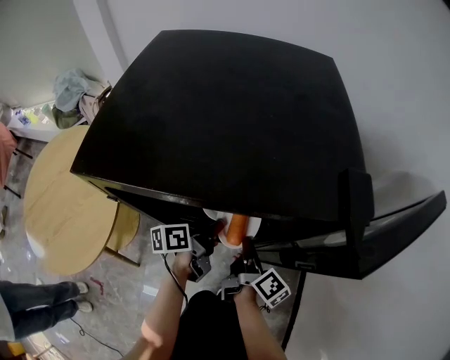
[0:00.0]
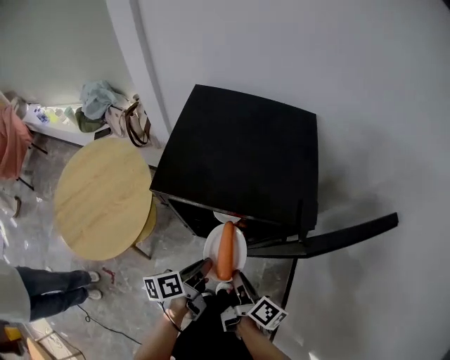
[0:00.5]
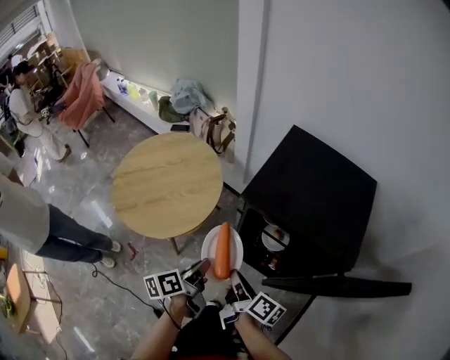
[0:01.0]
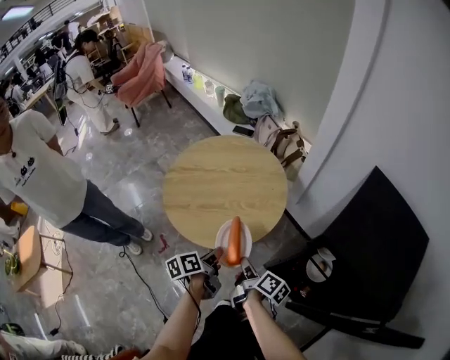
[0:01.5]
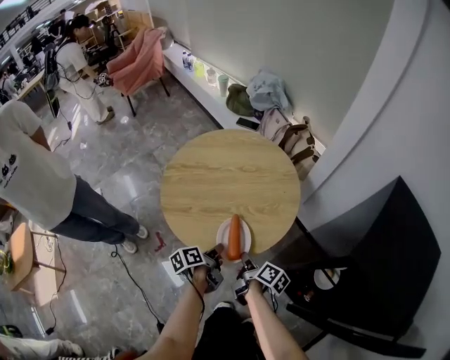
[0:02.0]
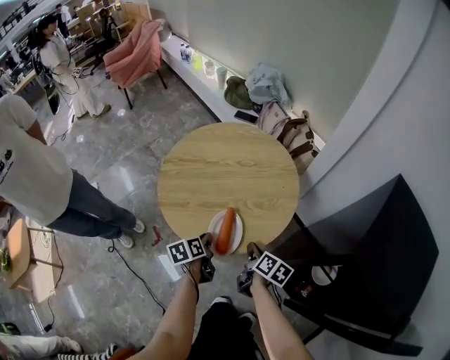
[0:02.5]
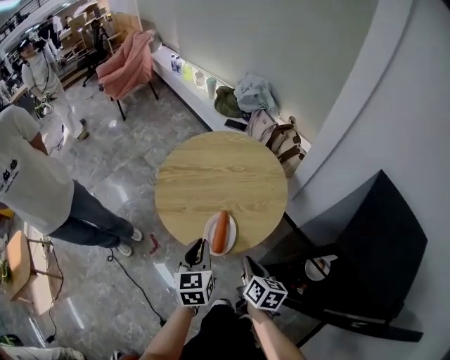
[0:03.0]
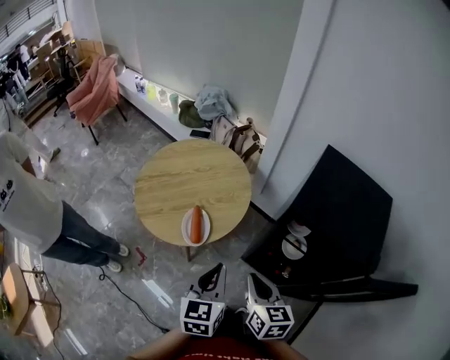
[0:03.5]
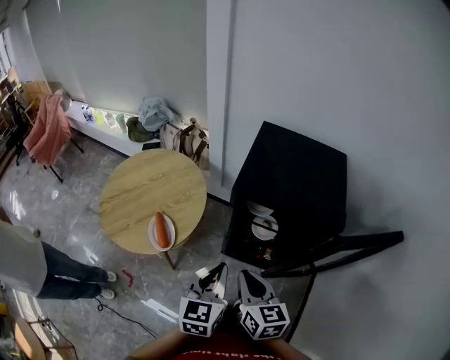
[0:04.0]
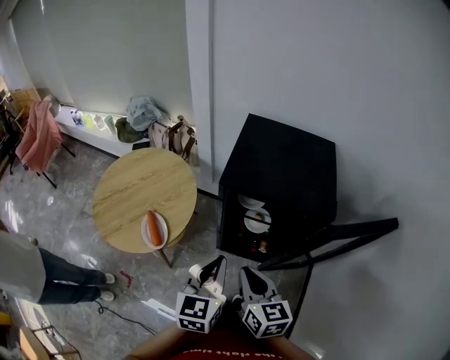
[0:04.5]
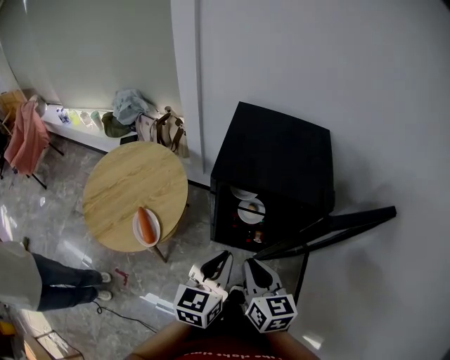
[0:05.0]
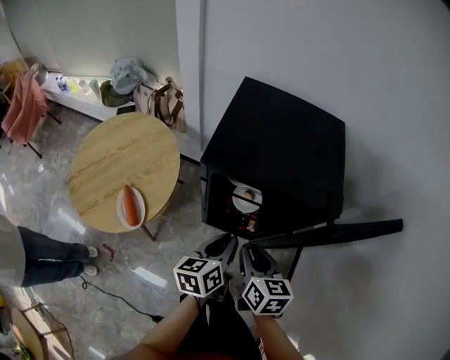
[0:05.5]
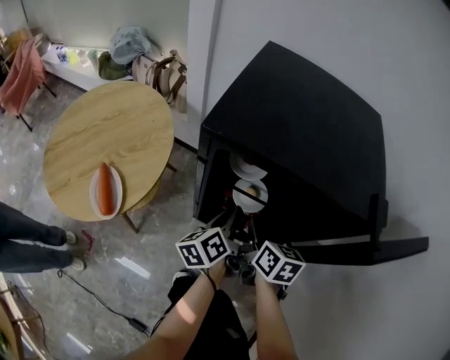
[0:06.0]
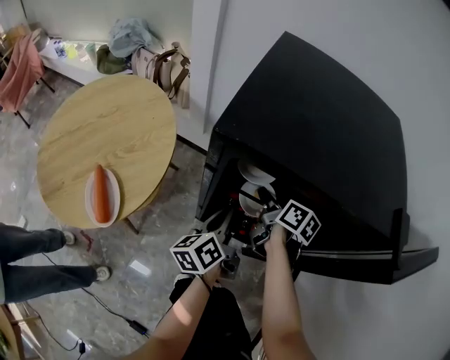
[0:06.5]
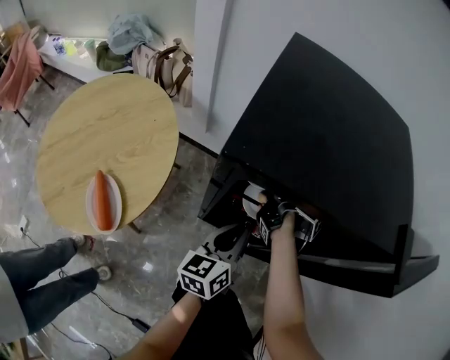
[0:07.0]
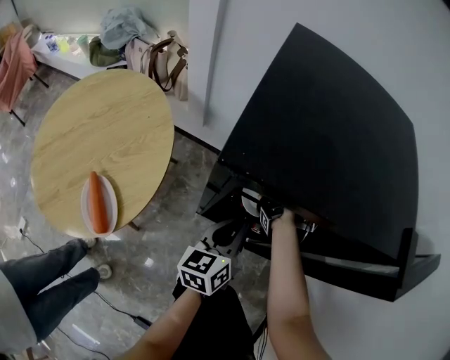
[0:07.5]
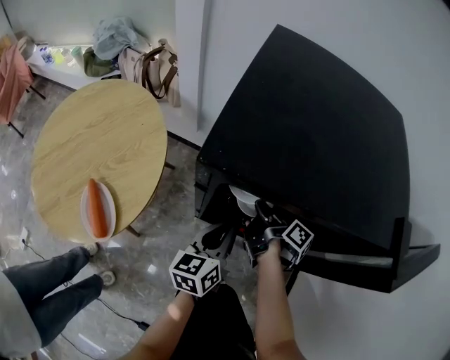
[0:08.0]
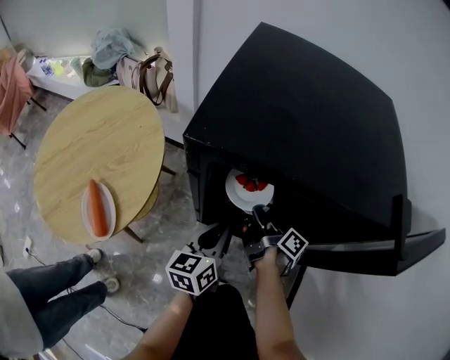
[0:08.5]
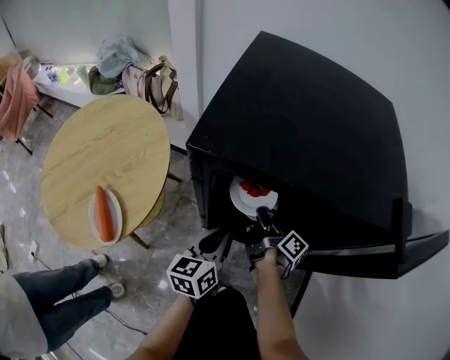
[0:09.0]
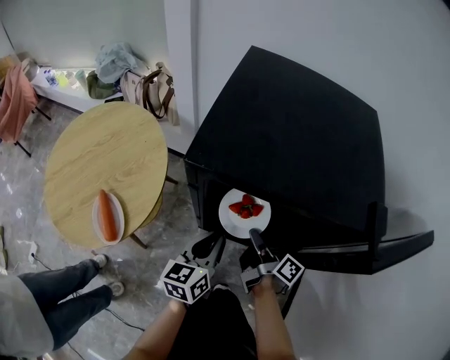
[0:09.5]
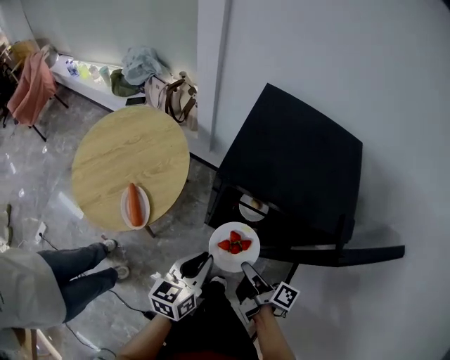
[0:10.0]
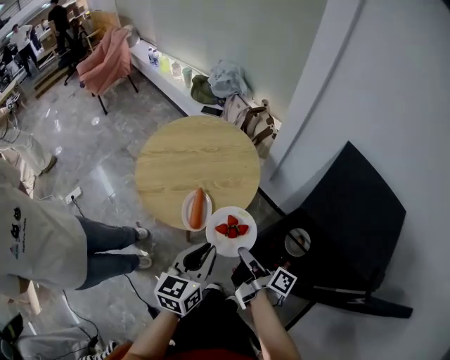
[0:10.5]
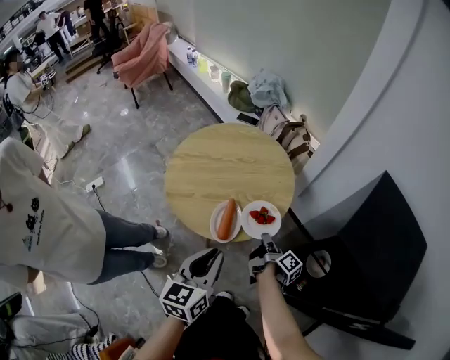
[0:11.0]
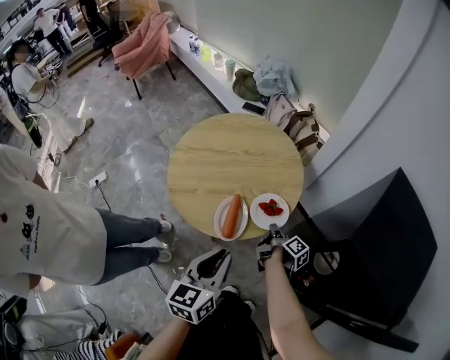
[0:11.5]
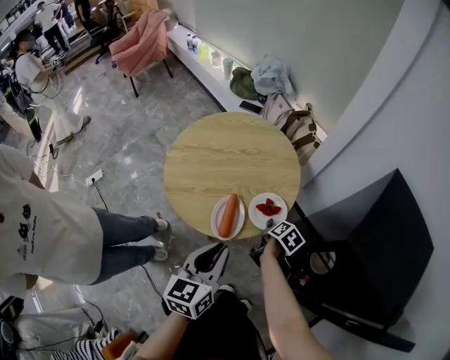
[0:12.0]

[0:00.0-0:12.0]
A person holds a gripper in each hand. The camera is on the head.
0:00.0 to 0:02.0: The pair of grippers is taken about 50 cm. The left gripper changes its angle by roughly 60 degrees. The right gripper rotates roughly 60 degrees.
0:02.0 to 0:04.0: The left gripper is displaced upward by about 30 cm, and twists approximately 80 degrees clockwise, seen from behind. The right gripper moves roughly 40 cm, and swivels approximately 60 degrees.
0:04.0 to 0:06.0: Both grippers travel together downward, forward and to the right, about 30 cm. The left gripper twists approximately 50 degrees counterclockwise, seen from behind.
0:06.0 to 0:08.0: The left gripper changes its angle by roughly 30 degrees; the right gripper moves forward and downward, some 10 cm, and twists approximately 60 degrees clockwise, seen from behind.
0:08.0 to 0:10.0: The left gripper is displaced upward and backward by roughly 20 cm; the right gripper heads backward and upward, covering roughly 25 cm.
0:10.0 to 0:12.0: The right gripper moves forward, to the left and downward, about 35 cm, points its fingers some 40 degrees further downward, and opens. Meanwhile the left gripper goes about 25 cm to the left, and swivels about 30 degrees.

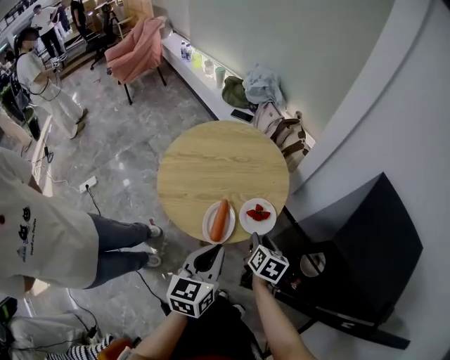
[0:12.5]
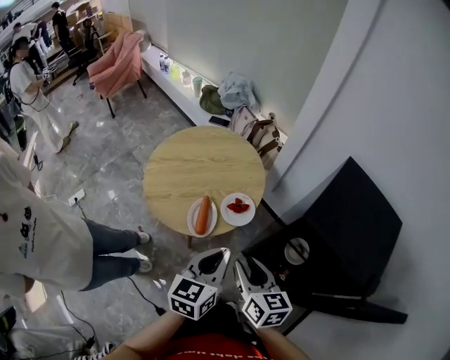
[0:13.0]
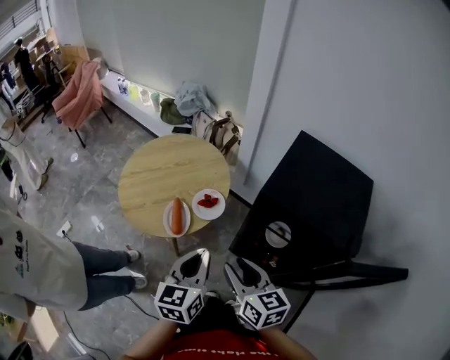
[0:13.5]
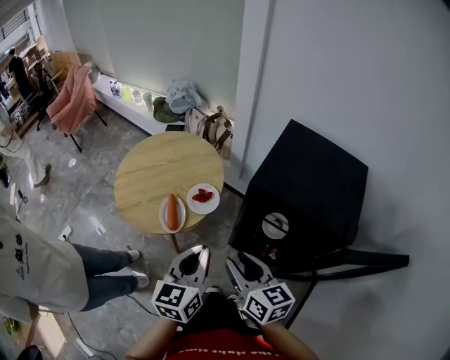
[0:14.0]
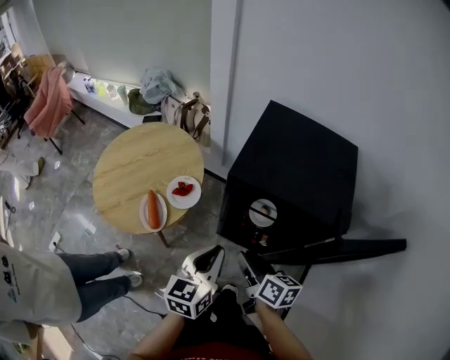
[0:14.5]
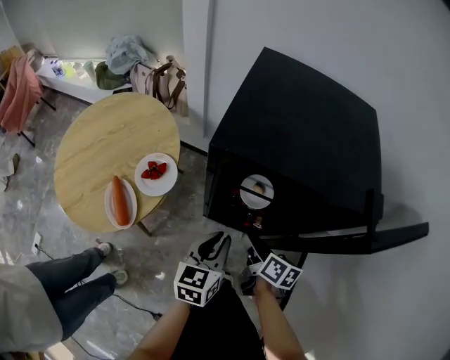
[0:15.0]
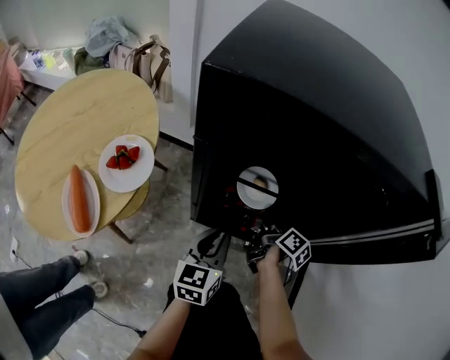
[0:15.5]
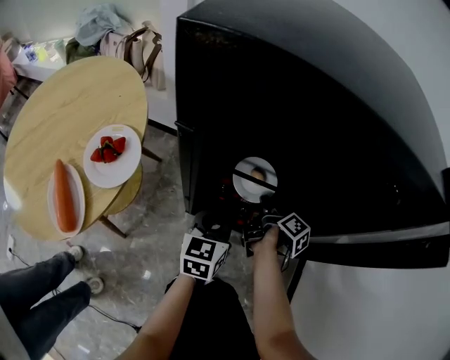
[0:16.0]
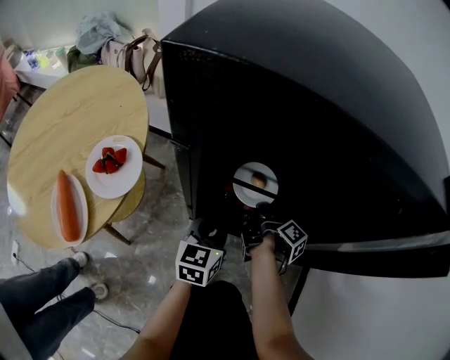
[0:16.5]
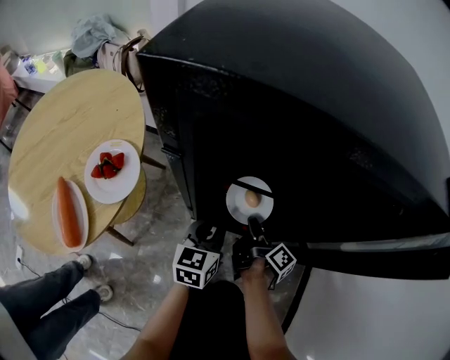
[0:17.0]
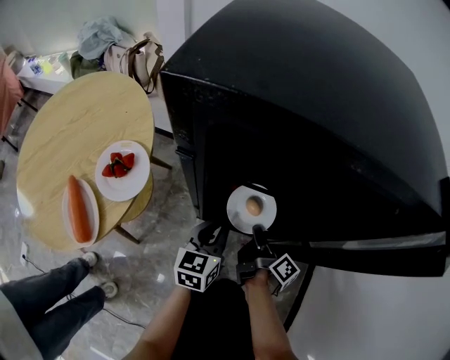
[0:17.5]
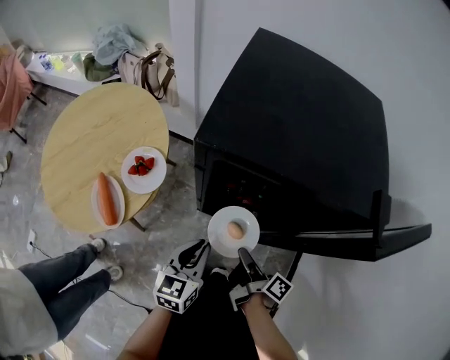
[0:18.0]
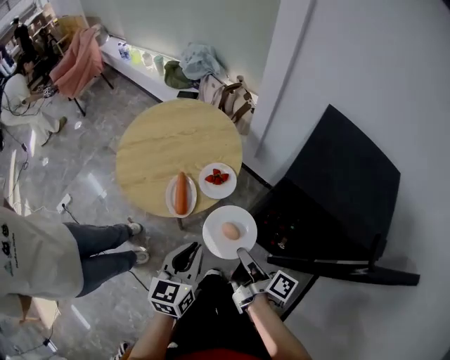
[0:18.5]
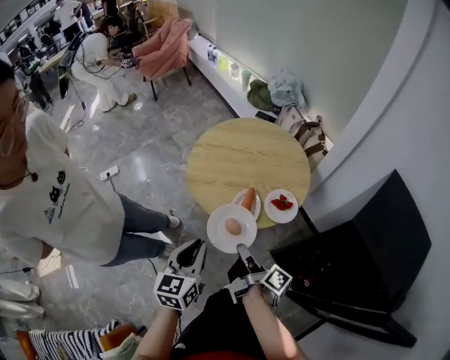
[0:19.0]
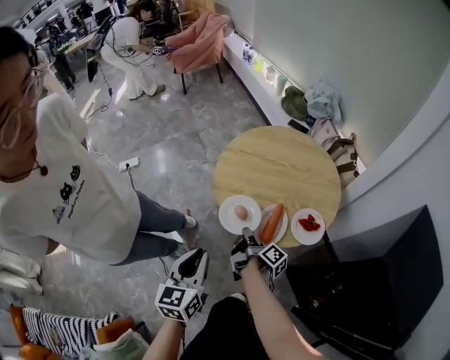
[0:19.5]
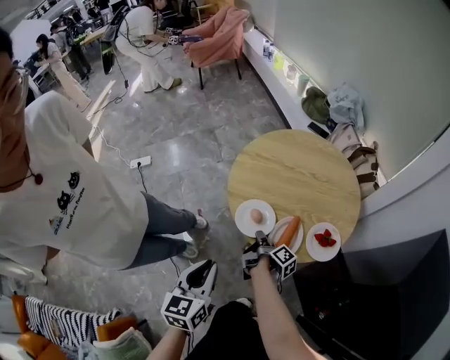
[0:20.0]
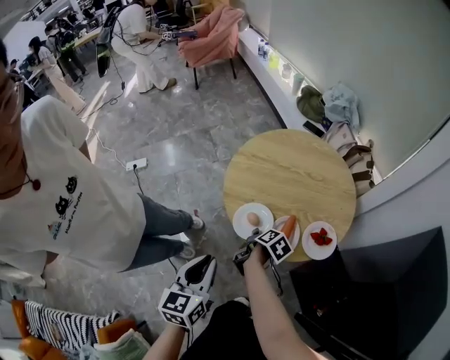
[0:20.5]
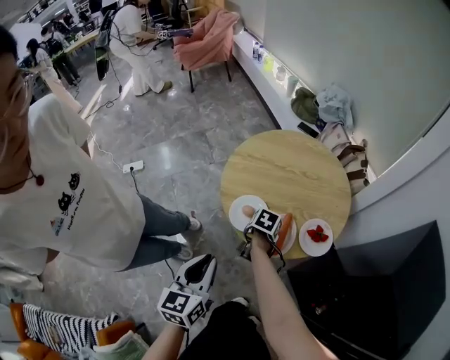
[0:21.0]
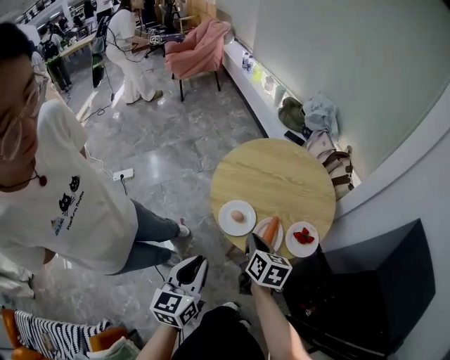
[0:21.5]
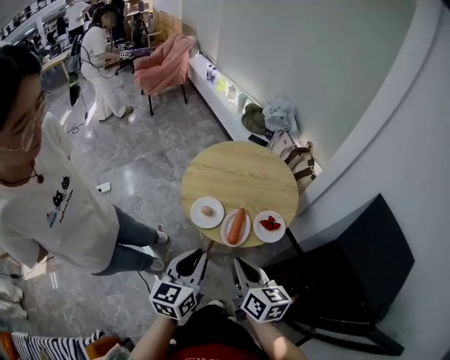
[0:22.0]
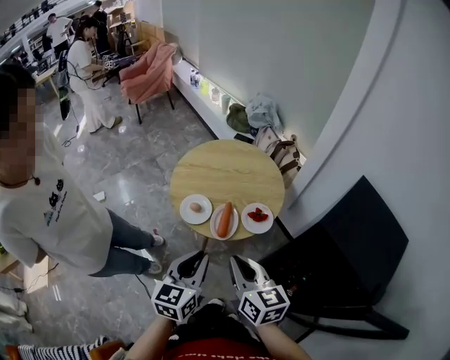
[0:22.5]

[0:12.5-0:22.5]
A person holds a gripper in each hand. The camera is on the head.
0:12.5 to 0:14.5: The left gripper goes approximately 25 cm to the right and backward, and swivels some 30 degrees. Meanwhile the right gripper is displaced backward, to the right and upward by about 30 cm, and rotates about 30 degrees.
0:14.5 to 0:16.5: The grippers both shift downward and forward by some 40 cm. The right gripper twists approximately 50 degrees clockwise, seen from behind, and closes.
0:16.5 to 0:18.5: The grippers both shift upward by some 35 cm. The left gripper rotates roughly 30 degrees. The right gripper swivels about 50 degrees.
0:18.5 to 0:20.5: The right gripper shifts by about 40 cm, tilts its fingers approximately 50 degrees downward, and opens up, while the left gripper changes place by about 25 cm, and changes its angle by about 30 degrees.
0:20.5 to 0:22.5: The left gripper shifts roughly 20 cm to the right, upward and backward. The right gripper goes about 40 cm upward and backward, twists roughly 50 degrees counterclockwise, seen from behind, and closes.

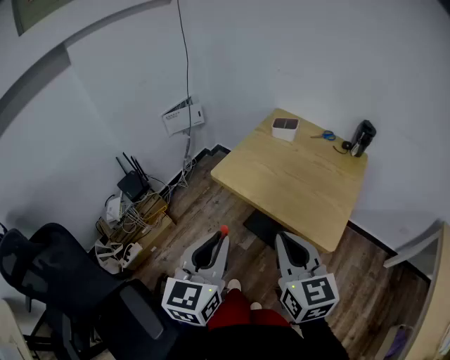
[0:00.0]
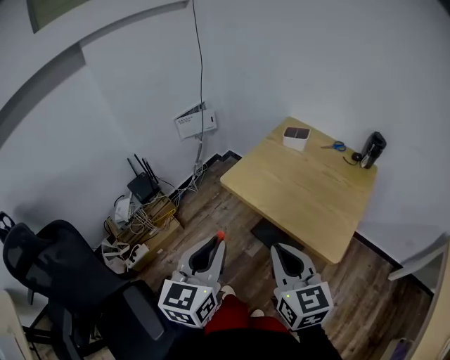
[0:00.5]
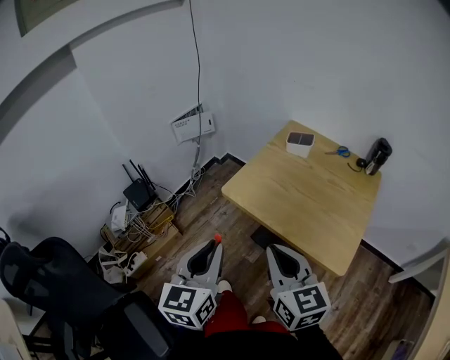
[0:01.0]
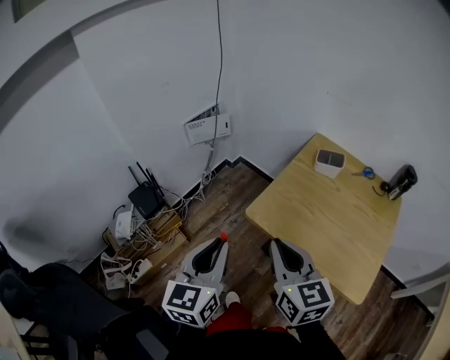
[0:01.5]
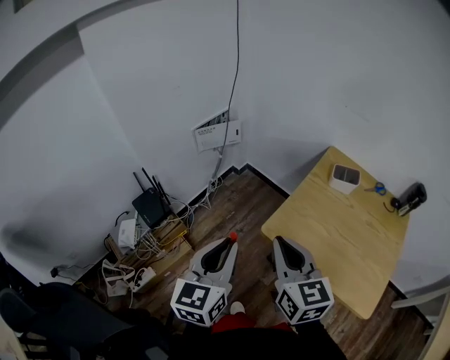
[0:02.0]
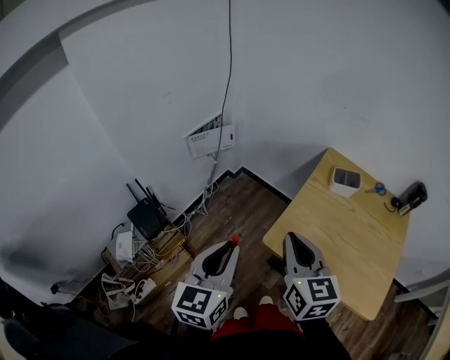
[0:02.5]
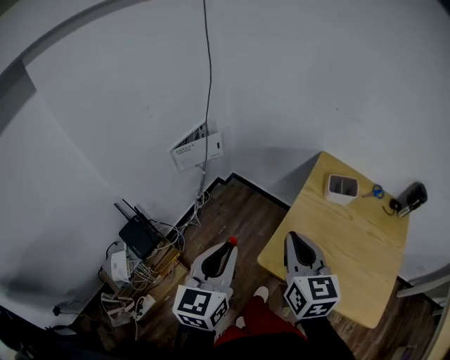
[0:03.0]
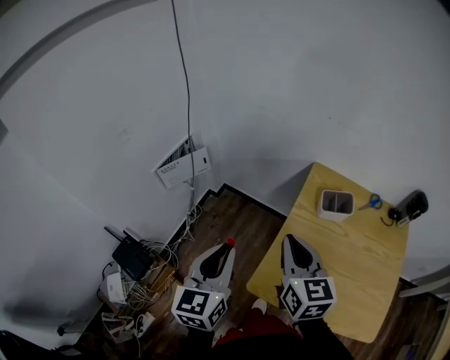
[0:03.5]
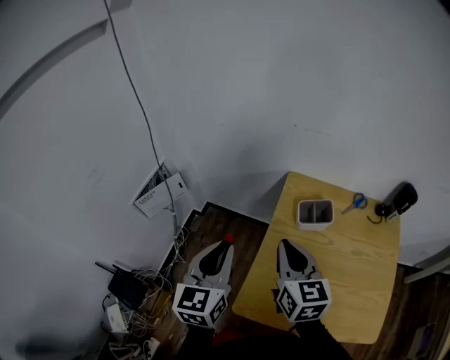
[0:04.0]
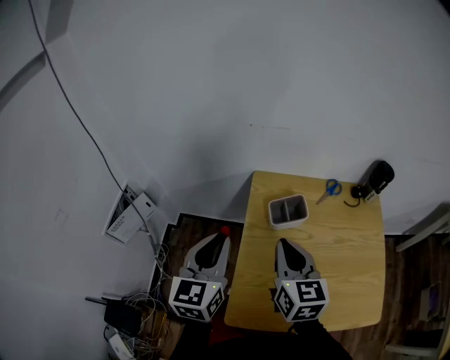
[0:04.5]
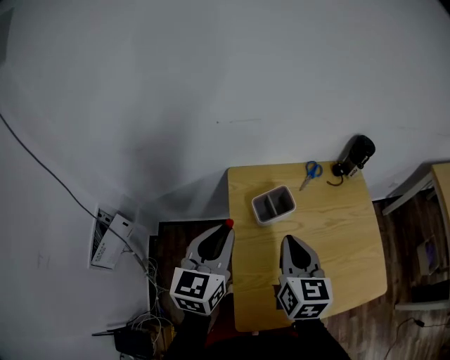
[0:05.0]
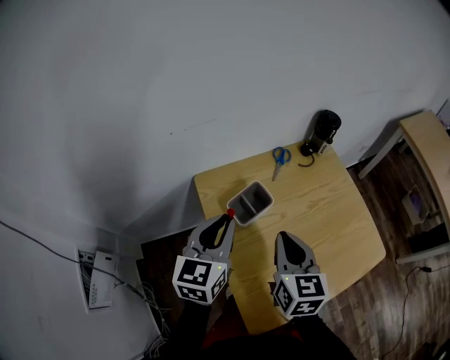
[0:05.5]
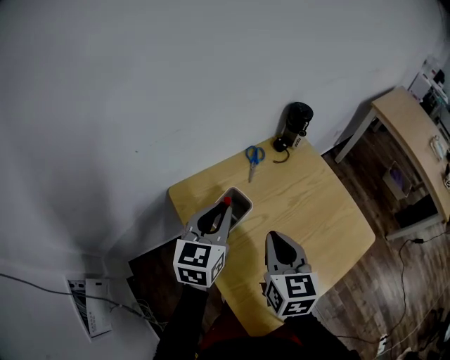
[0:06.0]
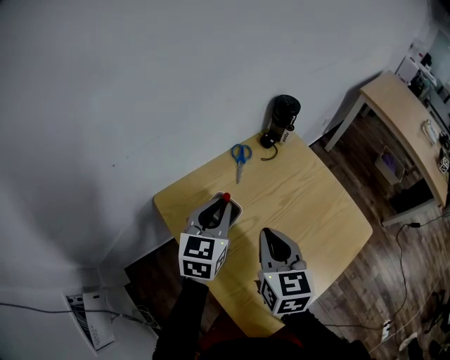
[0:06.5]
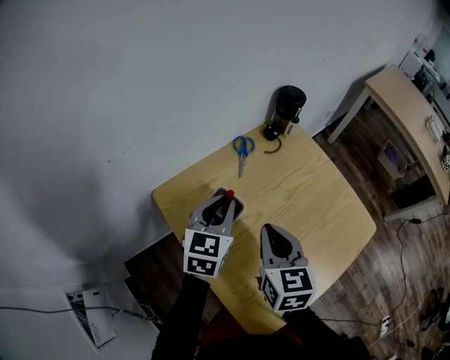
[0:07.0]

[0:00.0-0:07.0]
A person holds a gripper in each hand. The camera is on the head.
0:00.0 to 0:02.0: Both grippers travel together forward and to the left, about 30 cm.
0:02.0 to 0:03.5: Both grippers move forward, roughly 20 cm.
0:03.5 to 0:05.0: The left gripper moves roughly 25 cm, and swivels roughly 40 degrees. The right gripper moves roughly 20 cm, and turns by approximately 40 degrees.
0:05.0 to 0:07.0: The right gripper shifts by some 10 cm, and swivels roughly 30 degrees. Meanwhile the left gripper shifts by approximately 25 cm, and turns by some 40 degrees.
